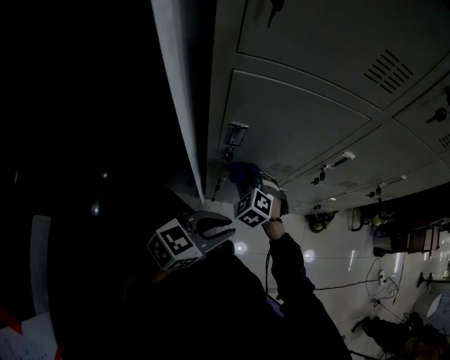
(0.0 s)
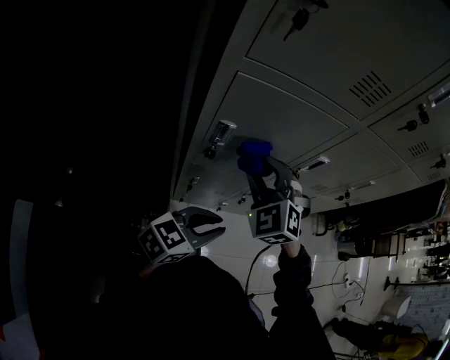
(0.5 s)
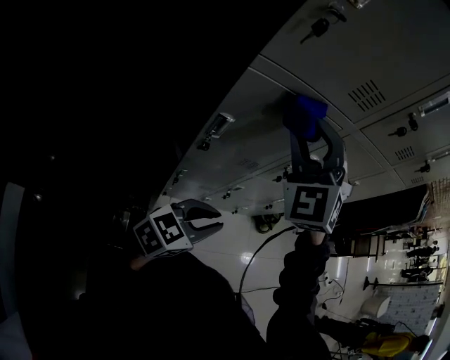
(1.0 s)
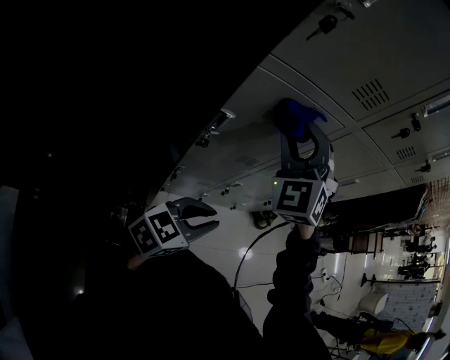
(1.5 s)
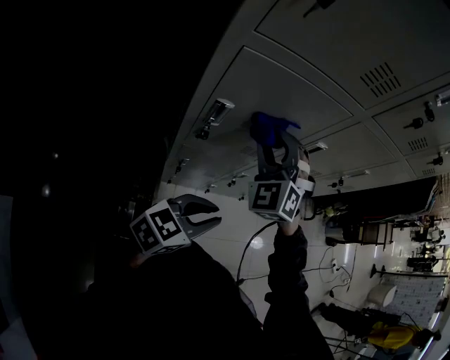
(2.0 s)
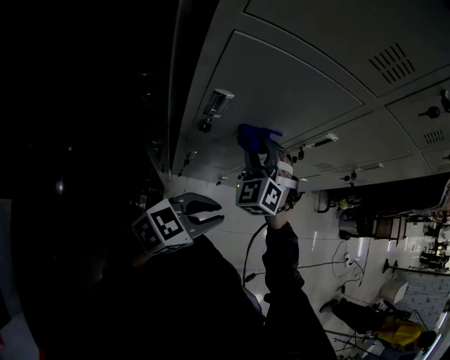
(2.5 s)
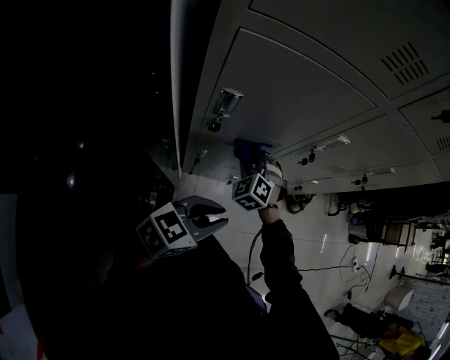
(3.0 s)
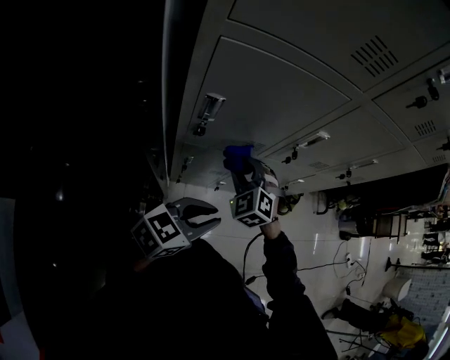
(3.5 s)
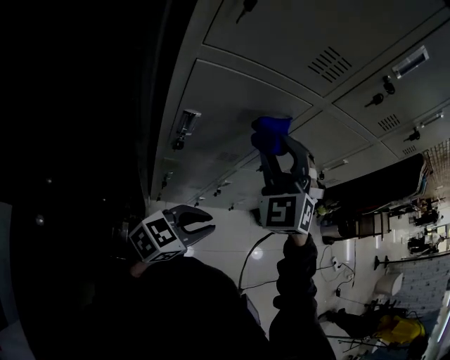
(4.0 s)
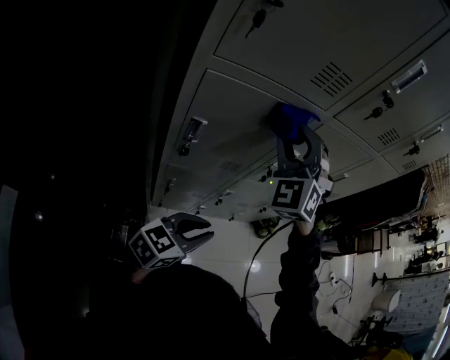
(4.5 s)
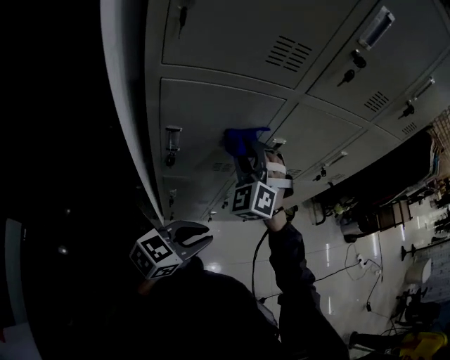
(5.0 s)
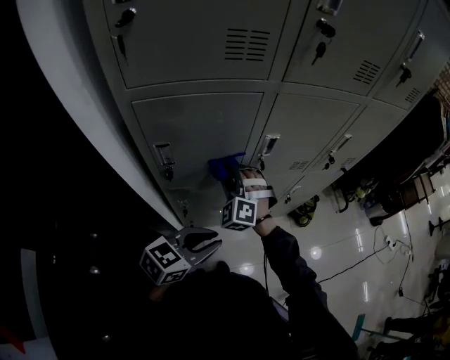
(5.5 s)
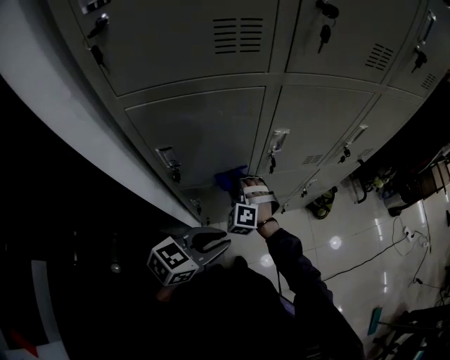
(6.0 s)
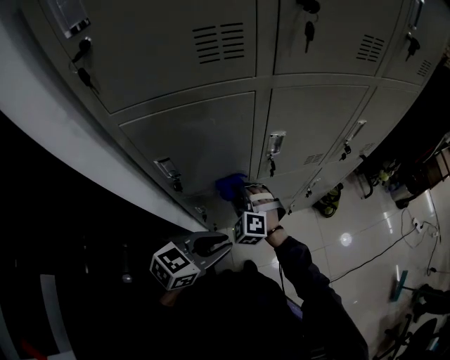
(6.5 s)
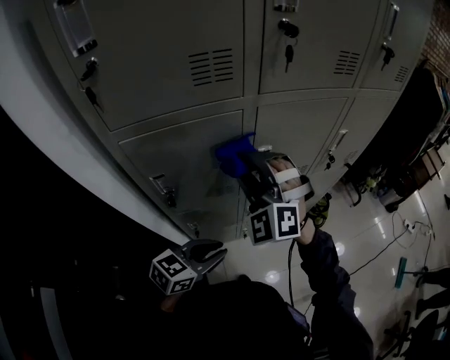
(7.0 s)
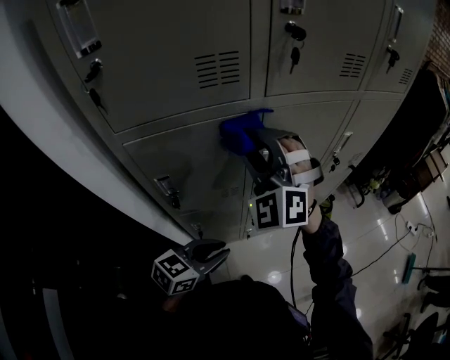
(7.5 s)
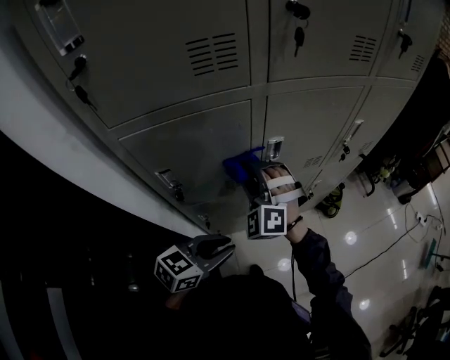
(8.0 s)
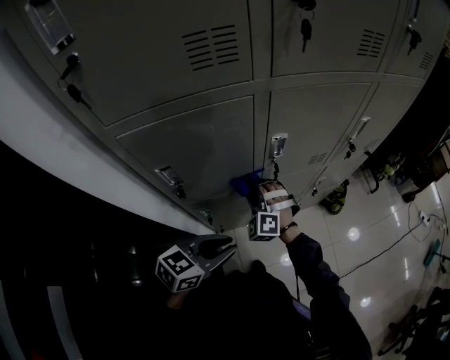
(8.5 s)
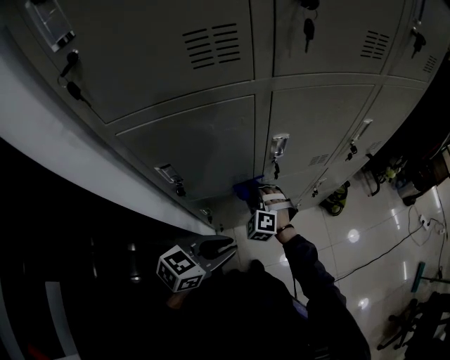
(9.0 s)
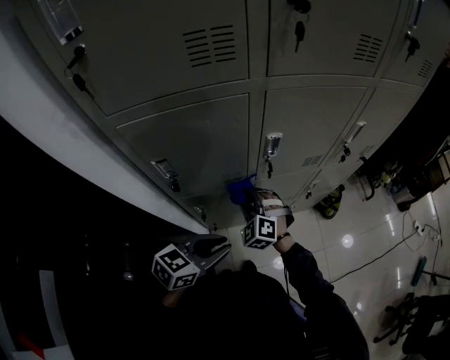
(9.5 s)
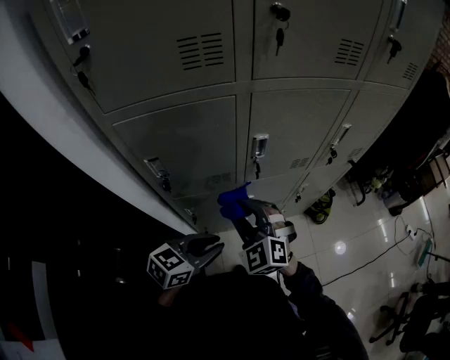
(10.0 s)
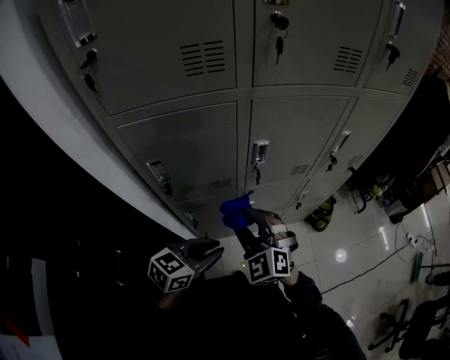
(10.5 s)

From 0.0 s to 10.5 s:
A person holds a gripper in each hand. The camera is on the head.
From 0.0 s to 2.0 s: The right gripper travels upward by about 25 cm, and rotates about 30 degrees.
From 2.0 s to 4.0 s: The right gripper goes some 5 cm to the right, and moves some 25 cm downward and comes back.
From 4.0 s to 6.5 s: The right gripper moves downward, some 30 cm.
From 6.5 s to 8.5 s: The right gripper moves some 30 cm upward and comes back.
From 8.5 s to 10.5 s: The right gripper heads upward, backward and to the right, covering roughly 20 cm, and changes its angle by approximately 30 degrees.

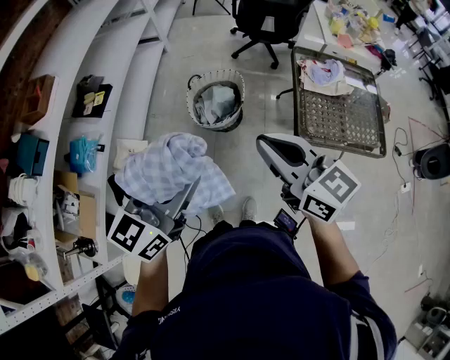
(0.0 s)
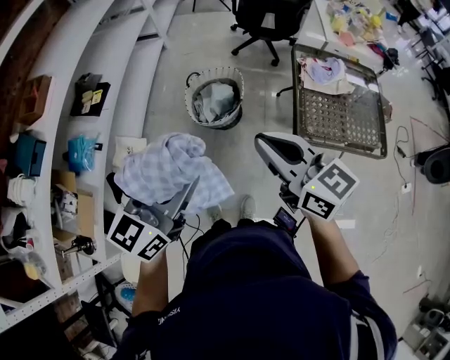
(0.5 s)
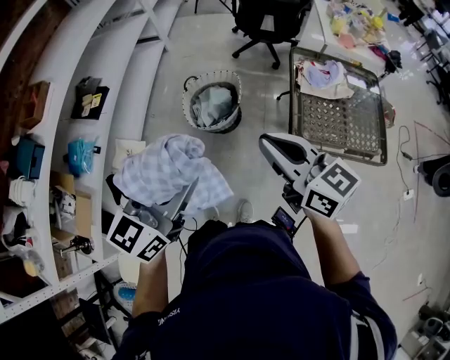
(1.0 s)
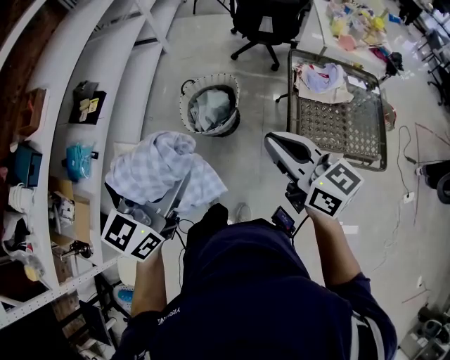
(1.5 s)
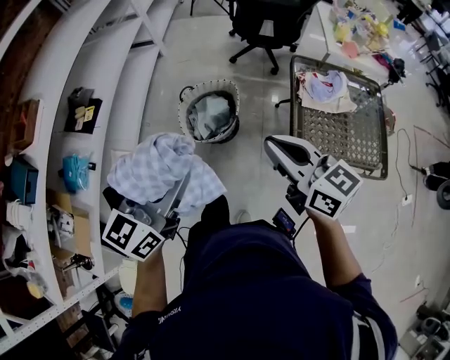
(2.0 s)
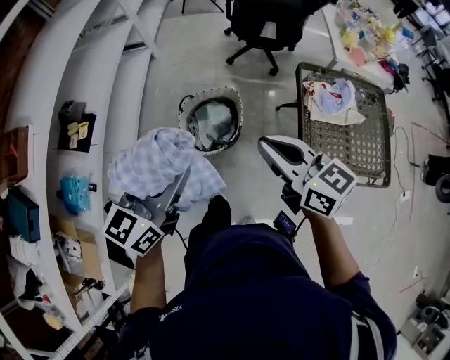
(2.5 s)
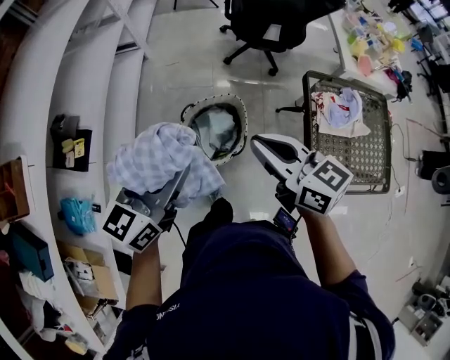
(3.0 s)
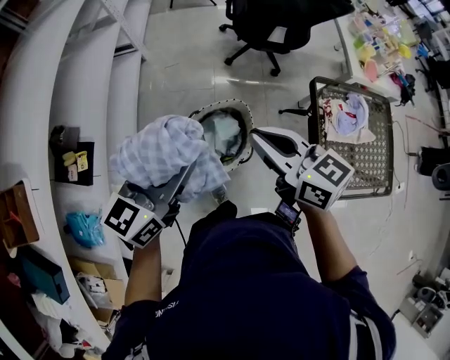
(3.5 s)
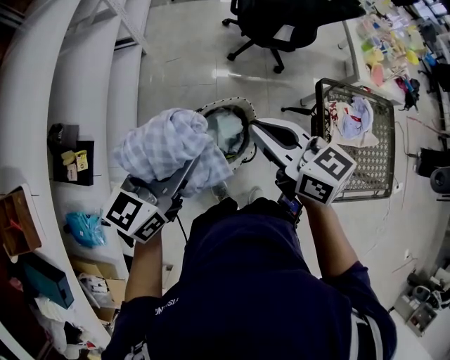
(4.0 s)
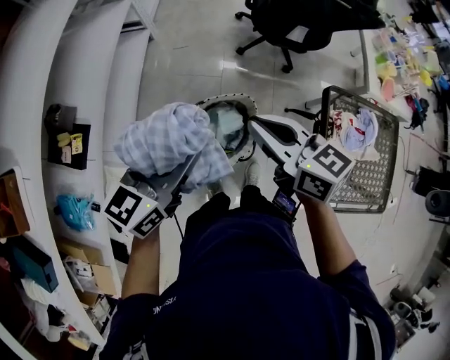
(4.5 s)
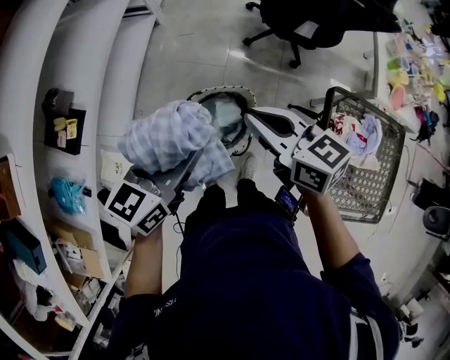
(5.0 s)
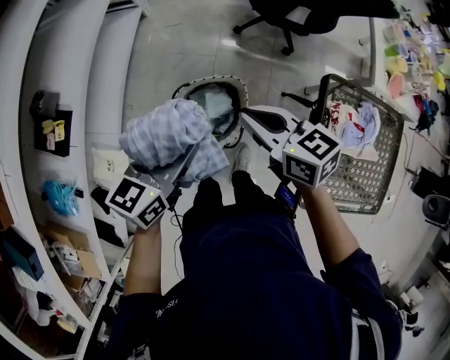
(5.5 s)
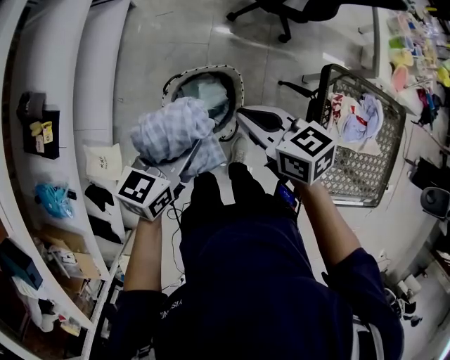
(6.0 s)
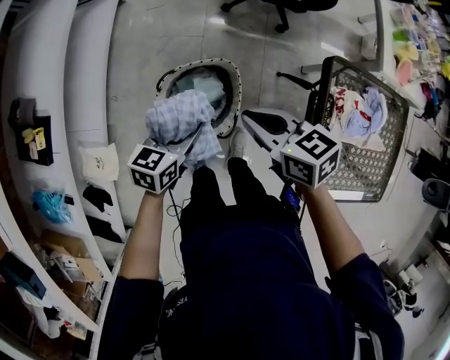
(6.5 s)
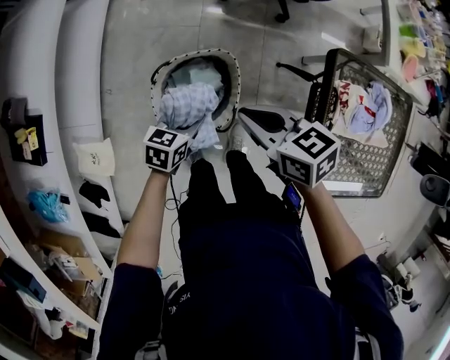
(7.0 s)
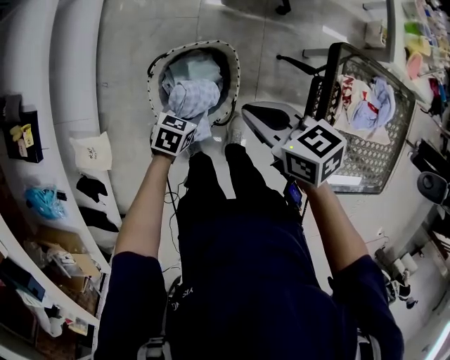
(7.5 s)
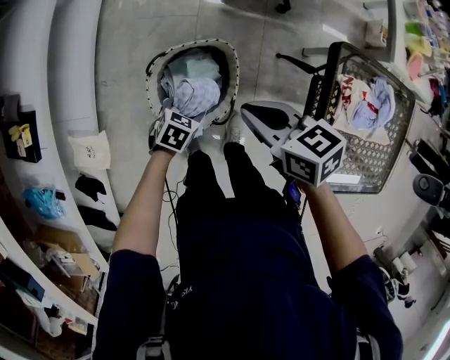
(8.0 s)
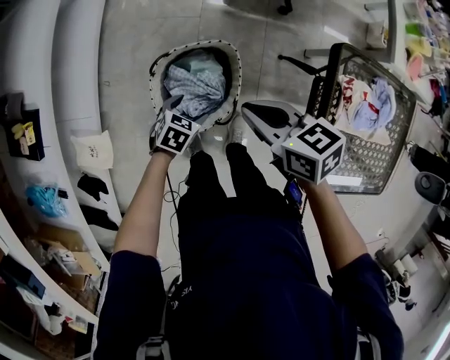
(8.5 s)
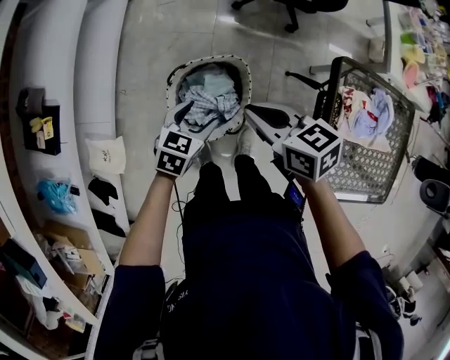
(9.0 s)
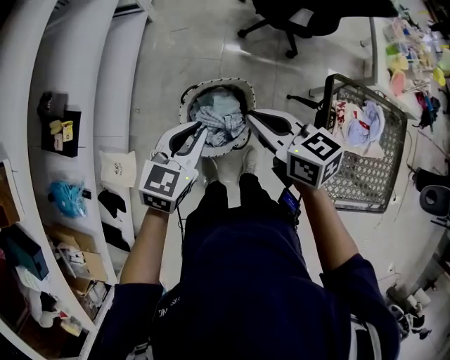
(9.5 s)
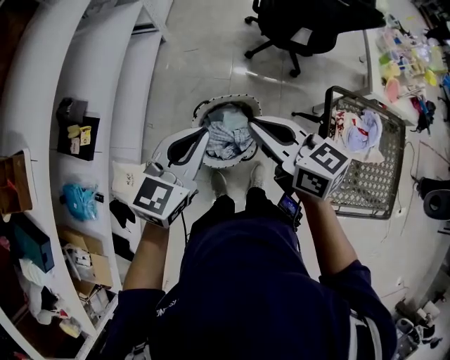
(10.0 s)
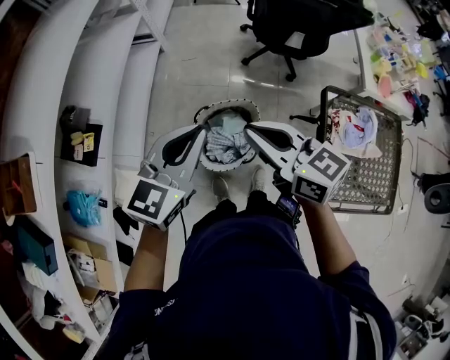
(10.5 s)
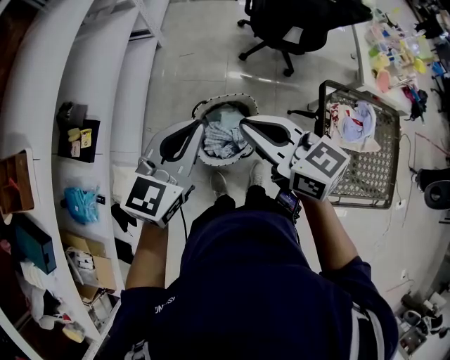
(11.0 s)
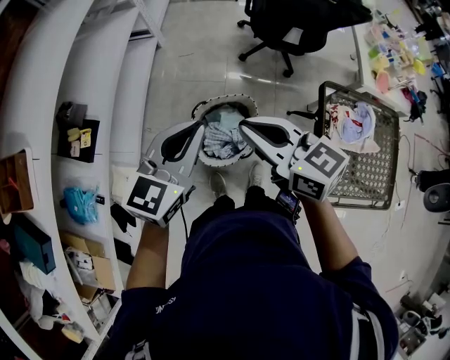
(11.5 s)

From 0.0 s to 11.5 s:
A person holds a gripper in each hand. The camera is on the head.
From 0.0 s to 2.0 s: The right gripper goes approximately 15 cm forward, to the right and downward. Meanwhile the left gripper shifts some 15 cm forward and to the right.
From 2.0 s to 4.0 s: The right gripper shifts roughly 40 cm forward and to the left. Meanwhile the left gripper travels forward by about 35 cm.
From 4.0 s to 6.0 s: The two grippers go some 20 cm downward and to the right. The right gripper rotates some 20 degrees.
From 6.0 s to 7.5 s: The left gripper goes about 25 cm downward, and turns by approximately 30 degrees; the right gripper heads downward, covering about 5 cm.
From 7.5 s to 9.5 s: The right gripper is displaced upward by some 15 cm, while the left gripper moves upward, some 30 cm, rotates about 30 degrees, and opens and closes again.
From 9.5 s to 11.5 s: The left gripper goes approximately 15 cm upward; the right gripper travels upward, backward and to the left by some 15 cm.

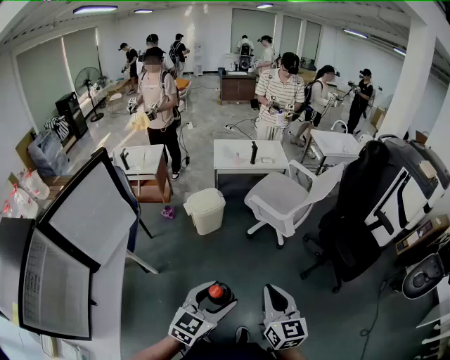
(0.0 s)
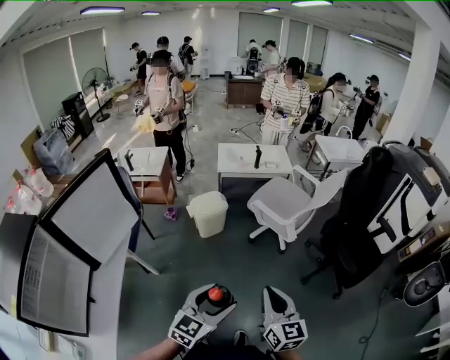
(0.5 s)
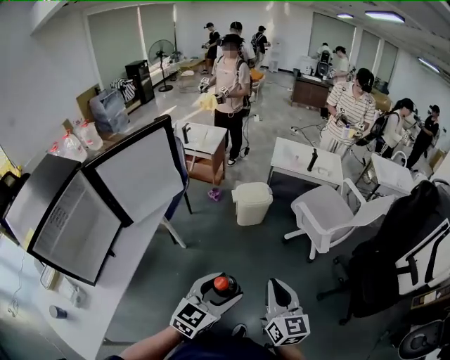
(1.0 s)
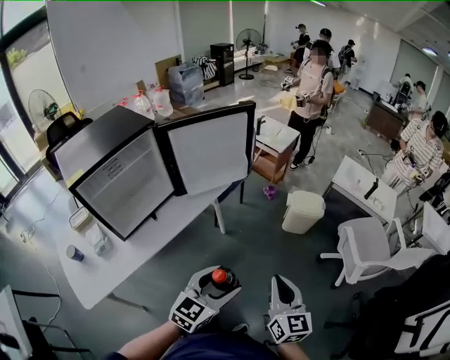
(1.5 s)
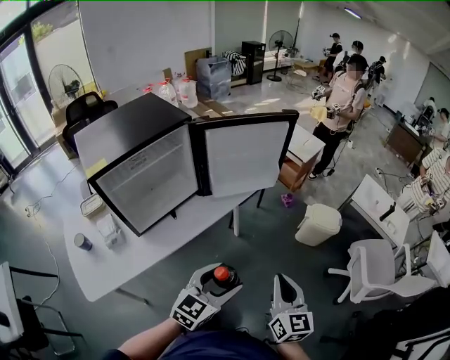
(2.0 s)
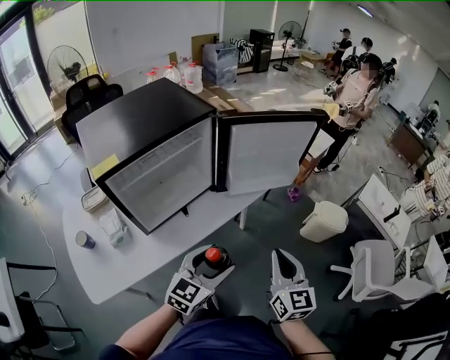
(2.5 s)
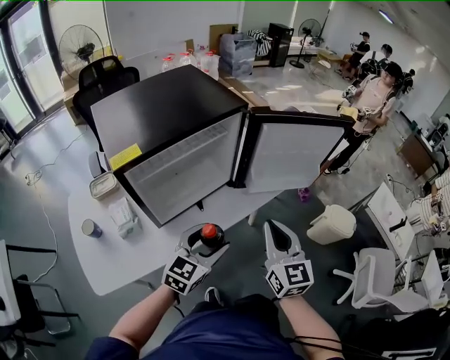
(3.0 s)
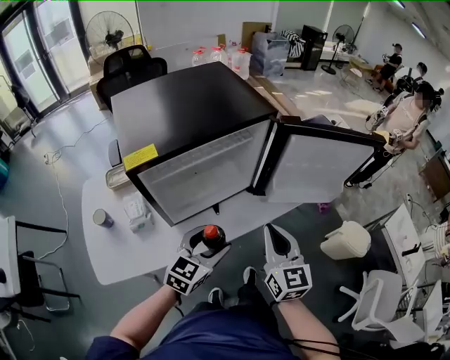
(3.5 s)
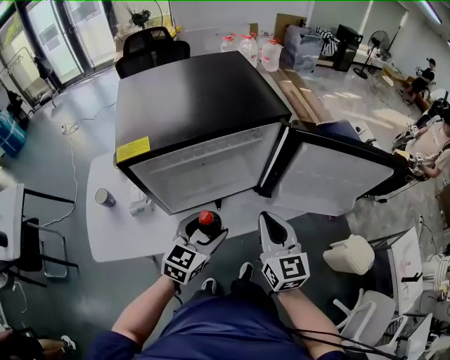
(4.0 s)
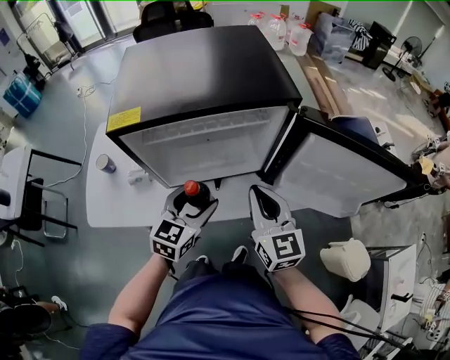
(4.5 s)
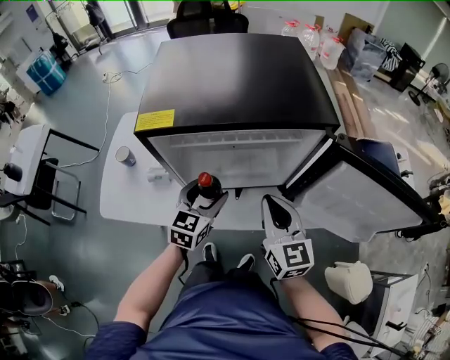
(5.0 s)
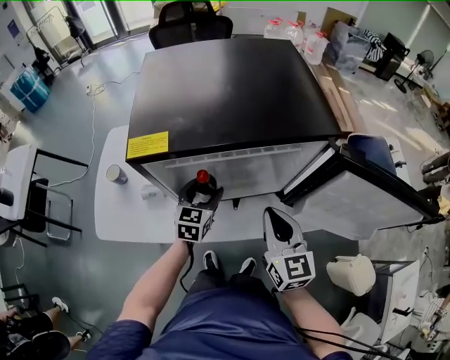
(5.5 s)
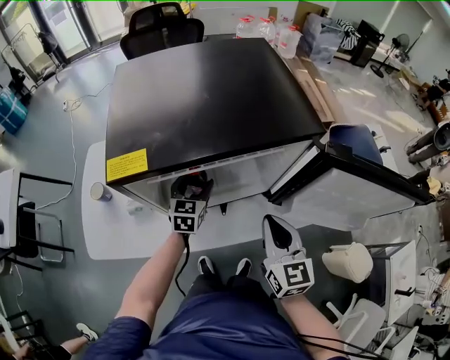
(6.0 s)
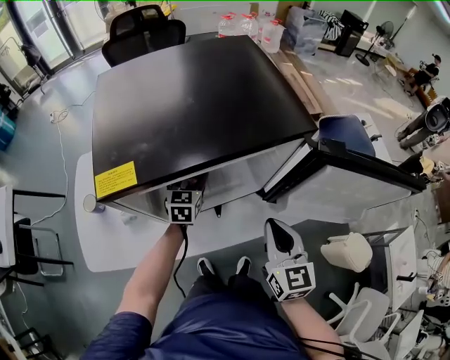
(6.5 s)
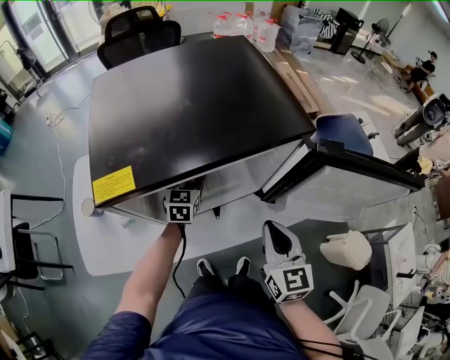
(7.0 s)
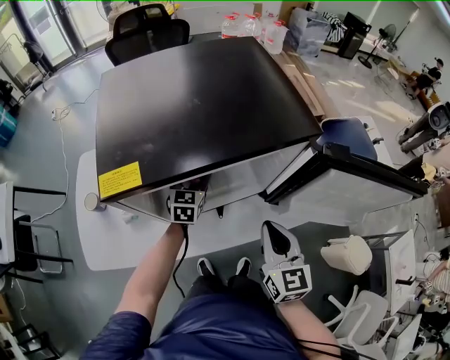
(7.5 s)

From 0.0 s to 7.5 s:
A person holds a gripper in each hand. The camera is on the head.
From 0.0 s to 2.0 s: The left gripper shifts by about 25 cm, and swivels some 50 degrees. The right gripper moves some 25 cm, and rotates some 50 degrees.
From 2.0 s to 4.0 s: The left gripper changes place by approximately 30 cm, and swivels some 40 degrees. Meanwhile the right gripper shifts by approximately 40 cm, and swivels about 40 degrees.
From 4.0 s to 5.5 s: The right gripper moves forward, some 5 cm; the left gripper moves forward, to the left and downward, approximately 20 cm, and turns by about 30 degrees.
From 5.5 s to 7.5 s: The left gripper travels forward by roughly 10 cm.
